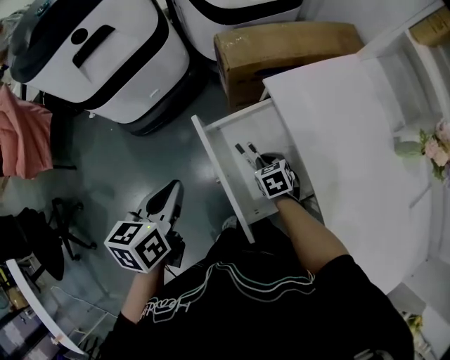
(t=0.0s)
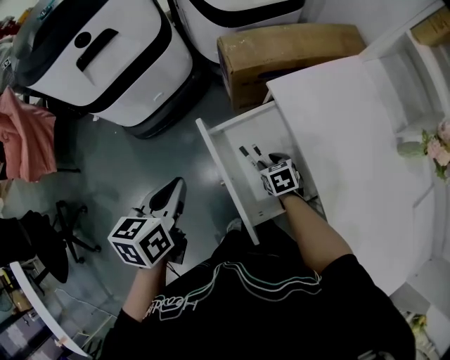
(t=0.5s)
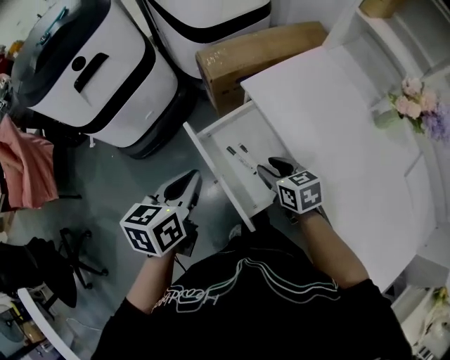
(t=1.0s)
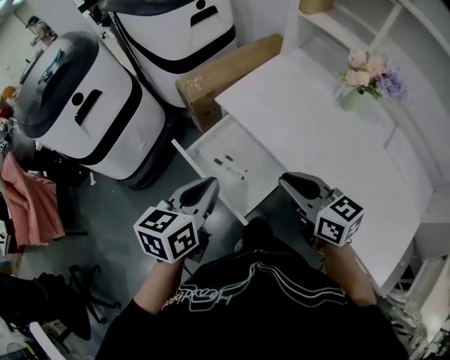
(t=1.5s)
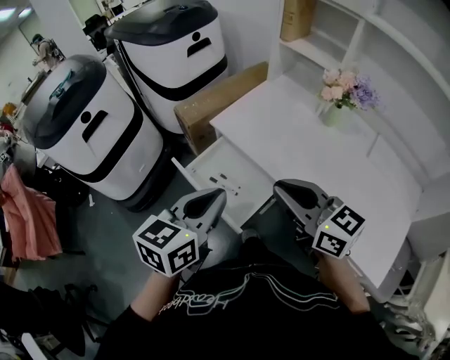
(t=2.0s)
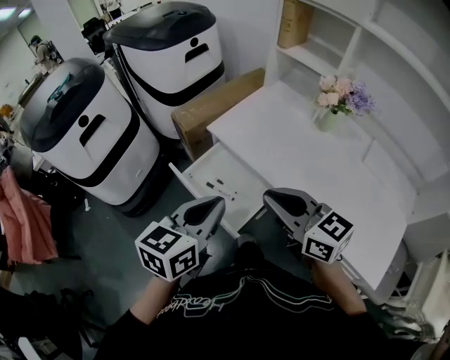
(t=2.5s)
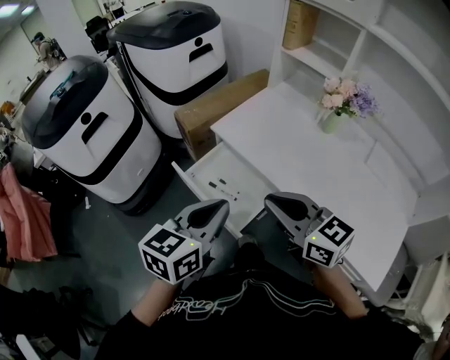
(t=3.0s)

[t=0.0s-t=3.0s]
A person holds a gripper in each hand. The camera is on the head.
t=0.0s to t=1.5s: The right gripper travels upward and backward by about 35 cm, angles its fingers upward, by roughly 50 degrees, and opens and closes again. Meanwhile the left gripper goes some 20 cm to the right, upward and backward, and changes its angle by about 30 degrees.
t=1.5s to t=3.0s: Both grippers move upward and backward, approximately 10 cm.

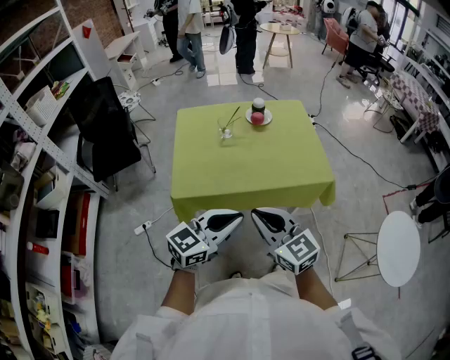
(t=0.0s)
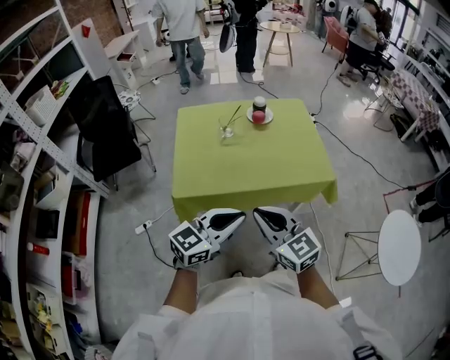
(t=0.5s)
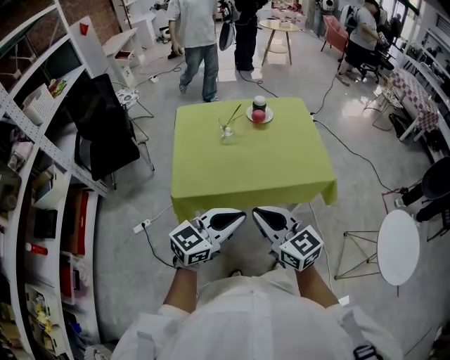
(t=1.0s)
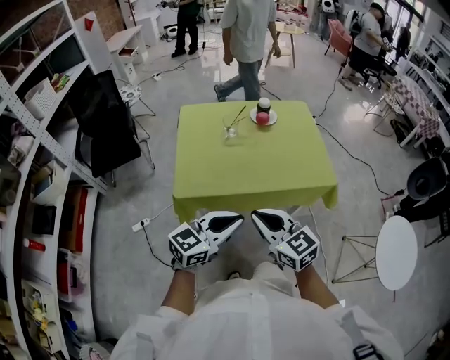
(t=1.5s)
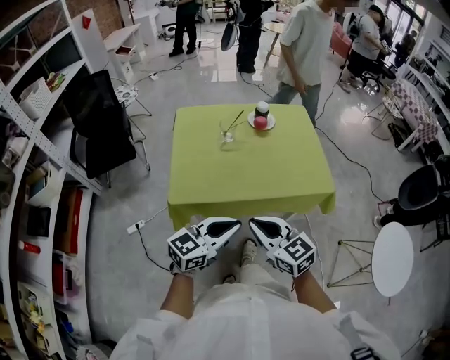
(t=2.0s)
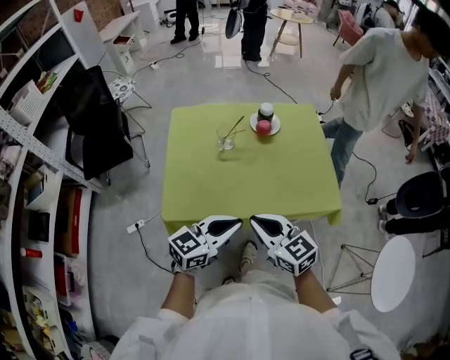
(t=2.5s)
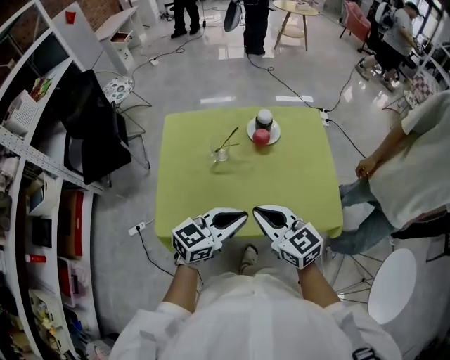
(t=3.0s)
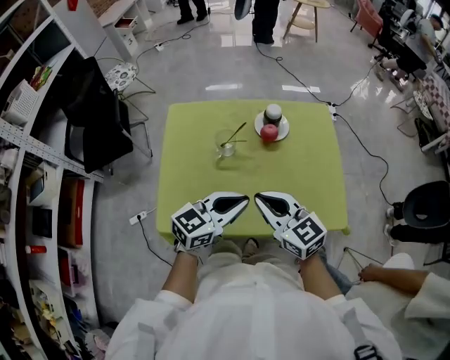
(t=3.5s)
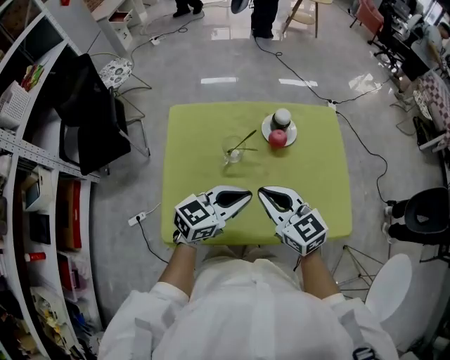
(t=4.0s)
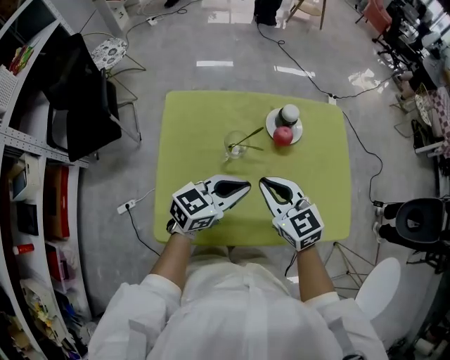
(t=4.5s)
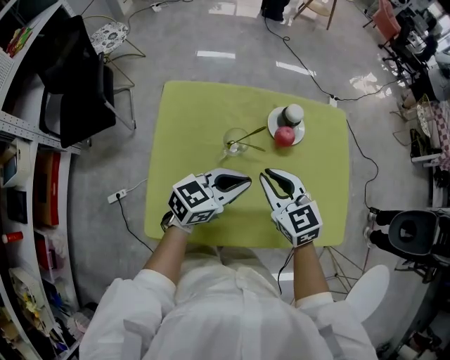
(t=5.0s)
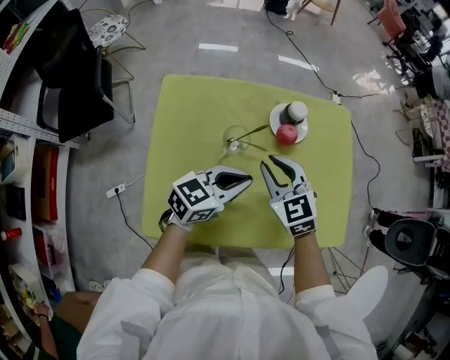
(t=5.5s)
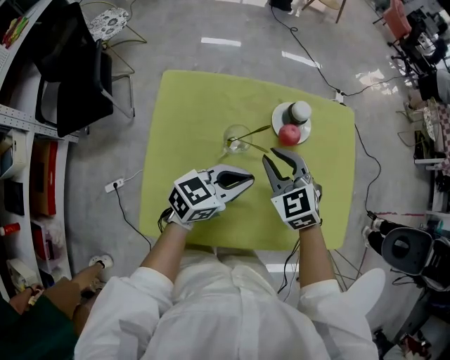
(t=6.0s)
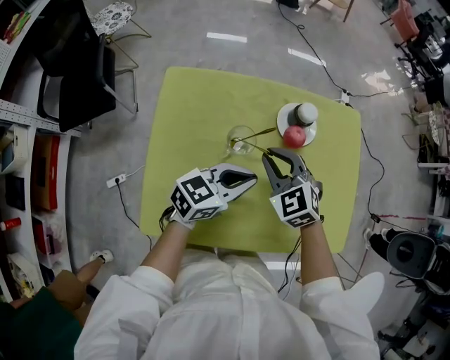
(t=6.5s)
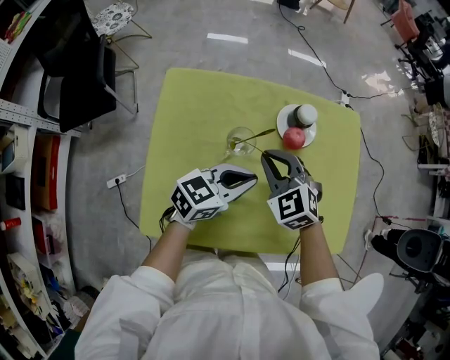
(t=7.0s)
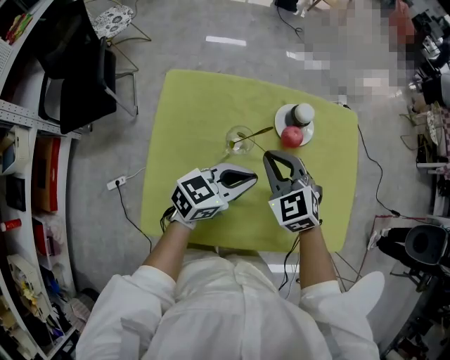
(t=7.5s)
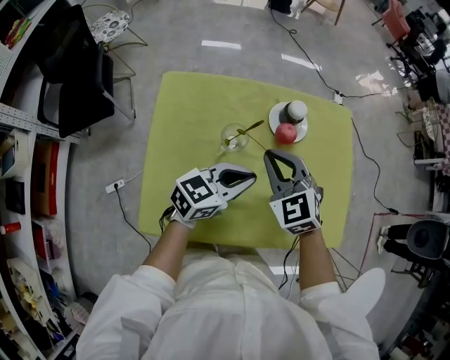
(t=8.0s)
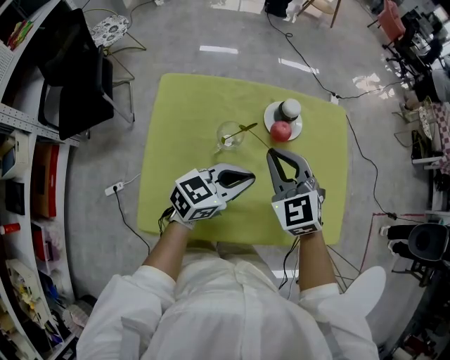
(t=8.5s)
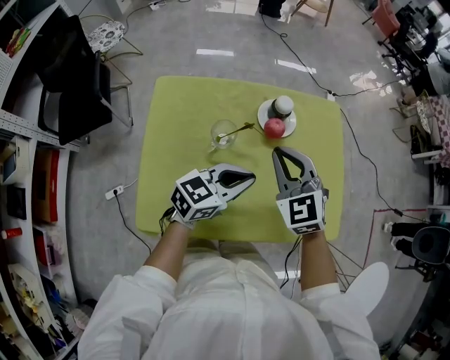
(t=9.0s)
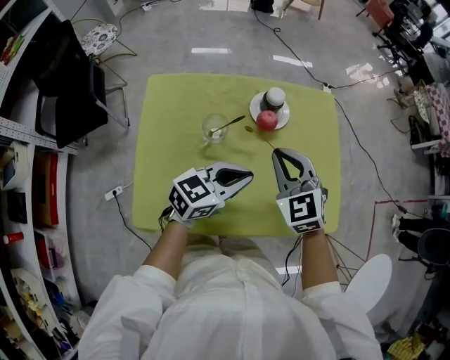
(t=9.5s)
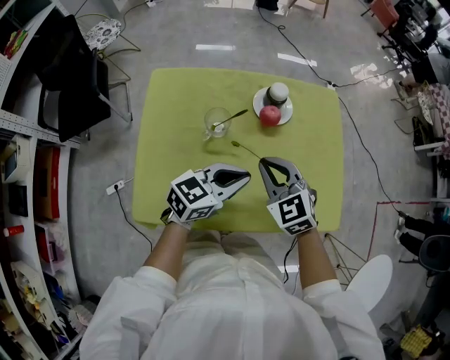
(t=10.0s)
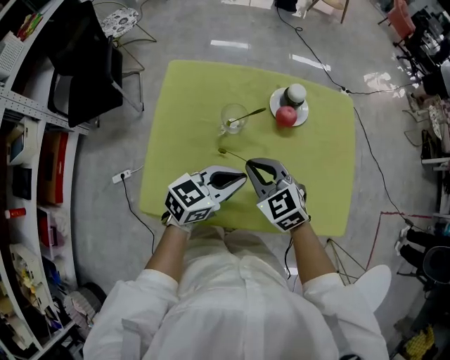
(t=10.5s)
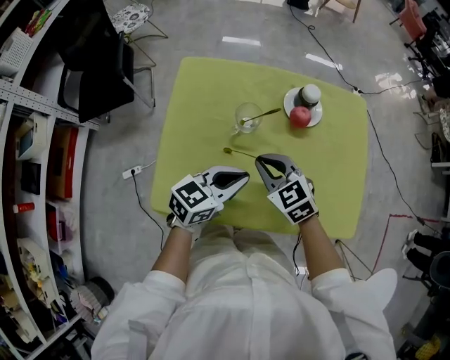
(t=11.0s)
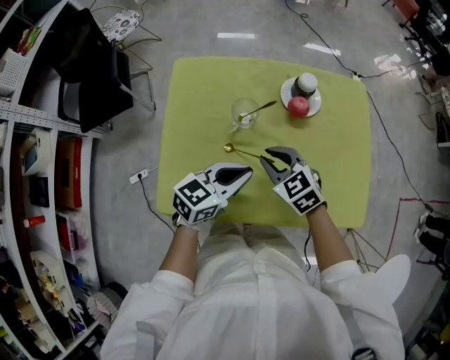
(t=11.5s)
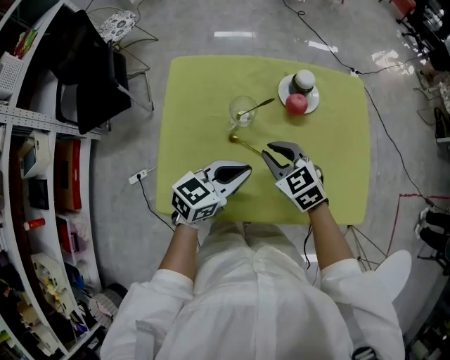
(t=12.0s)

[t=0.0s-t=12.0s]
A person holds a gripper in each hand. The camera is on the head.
t=0.0s to t=2.0s: There are only small adjustments of the grippers.
t=2.0s to t=4.0s: Both grippers travel together forward, some 25 cm.
t=4.0s to t=6.0s: The left gripper goes approximately 5 cm forward. Meanwhile the right gripper travels forward and downward by approximately 15 cm, and swivels some 30 degrees.
t=6.0s to t=8.0s: The grippers move only a little.
t=8.0s to t=10.0s: The right gripper heads to the right, covering about 5 cm. The left gripper ends up roughly 5 cm from where it was.
t=10.0s to t=12.0s: The left gripper travels to the left by some 5 cm. The right gripper moves to the left and downward, roughly 10 cm.

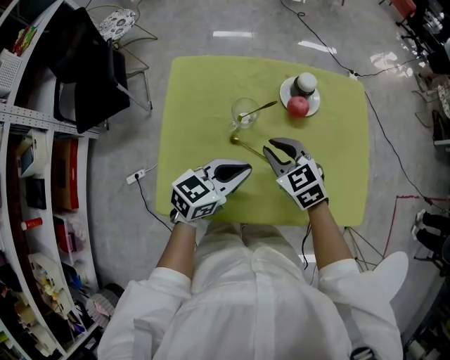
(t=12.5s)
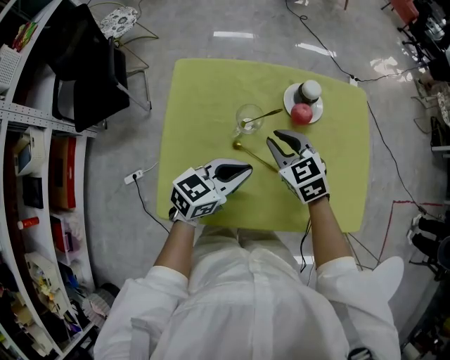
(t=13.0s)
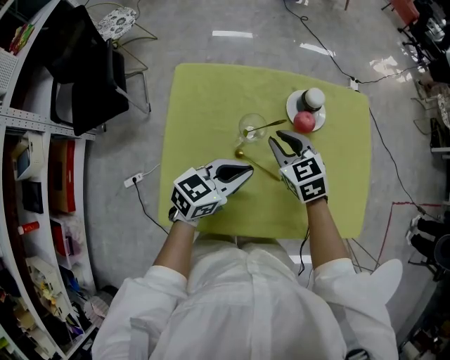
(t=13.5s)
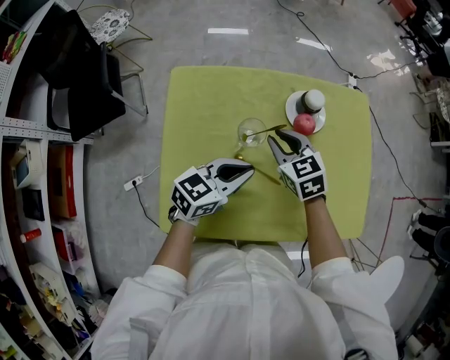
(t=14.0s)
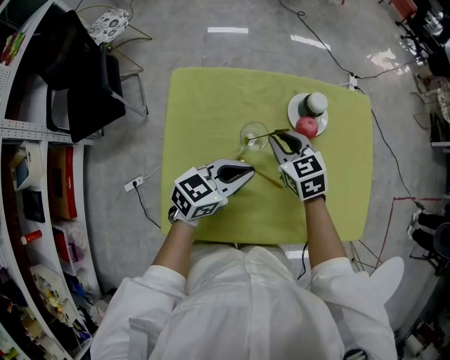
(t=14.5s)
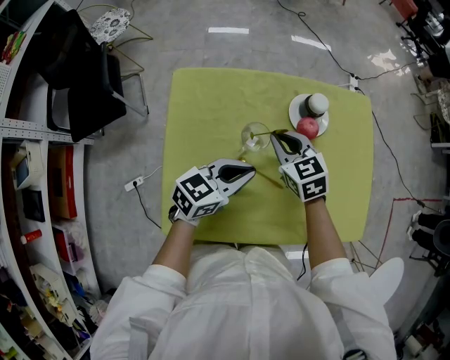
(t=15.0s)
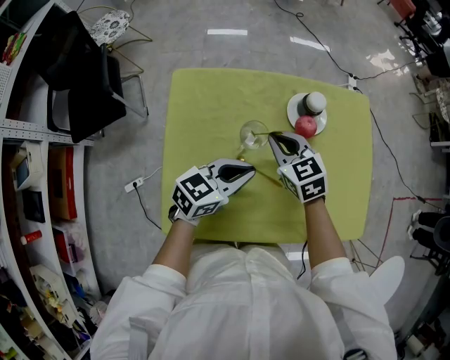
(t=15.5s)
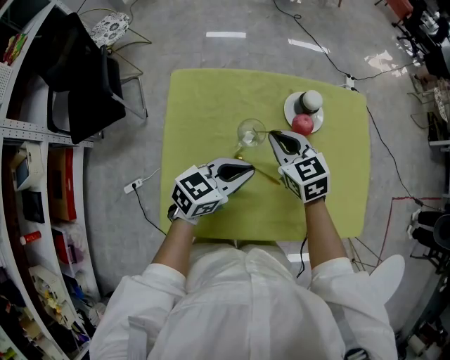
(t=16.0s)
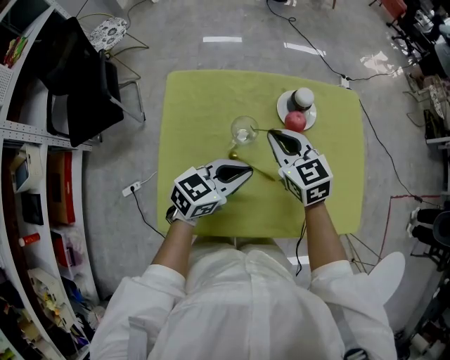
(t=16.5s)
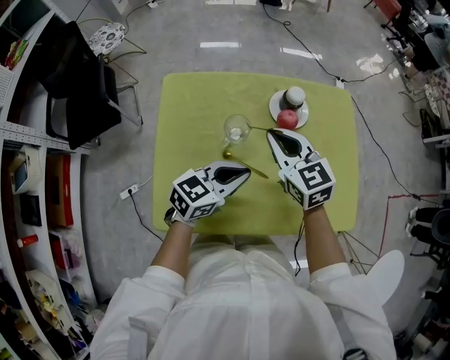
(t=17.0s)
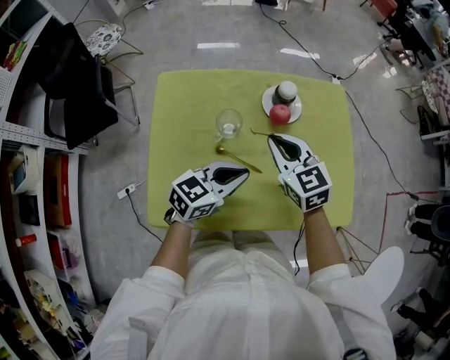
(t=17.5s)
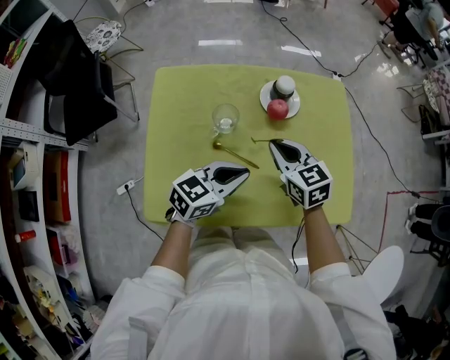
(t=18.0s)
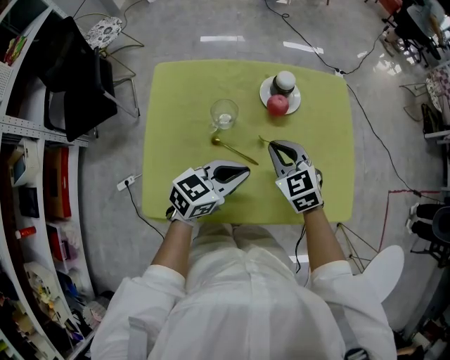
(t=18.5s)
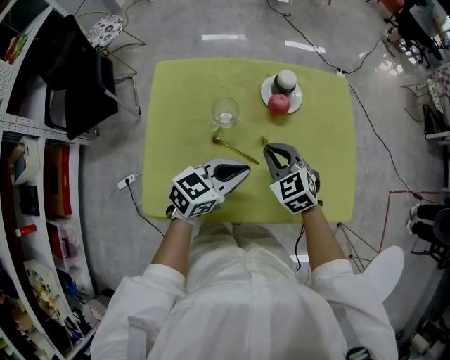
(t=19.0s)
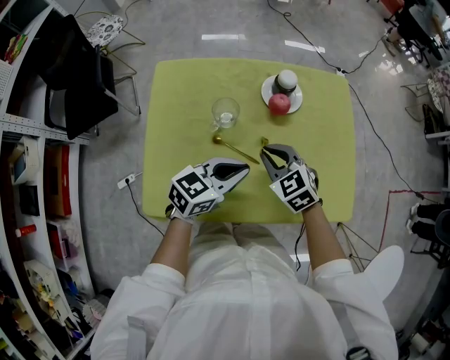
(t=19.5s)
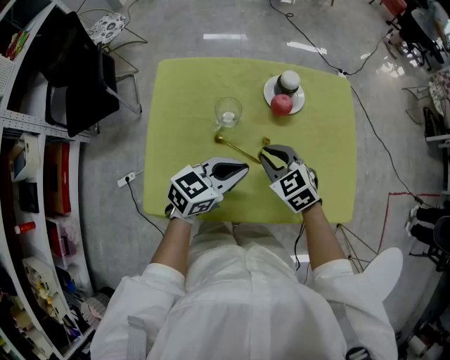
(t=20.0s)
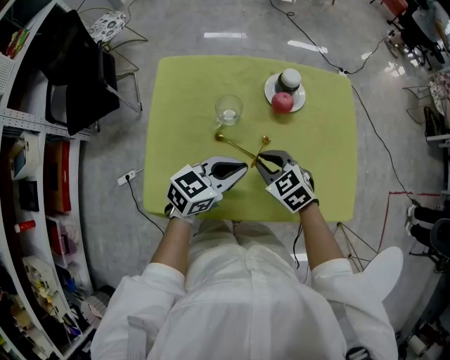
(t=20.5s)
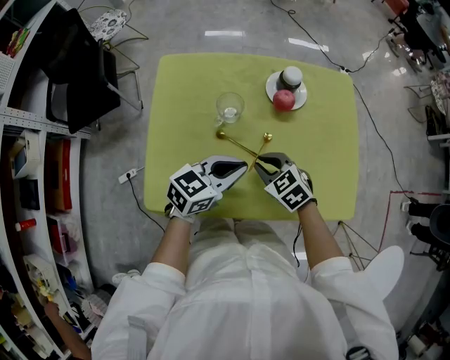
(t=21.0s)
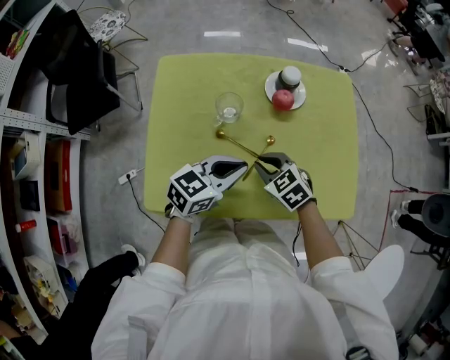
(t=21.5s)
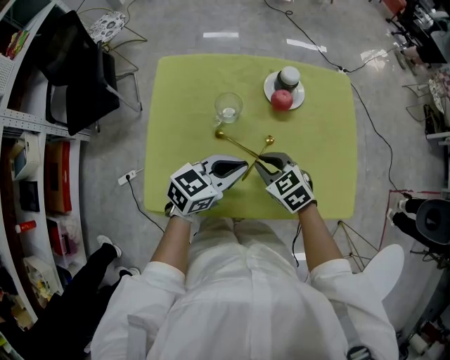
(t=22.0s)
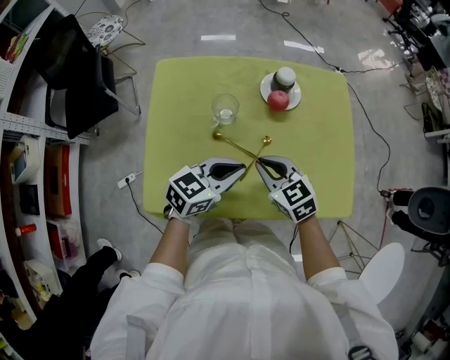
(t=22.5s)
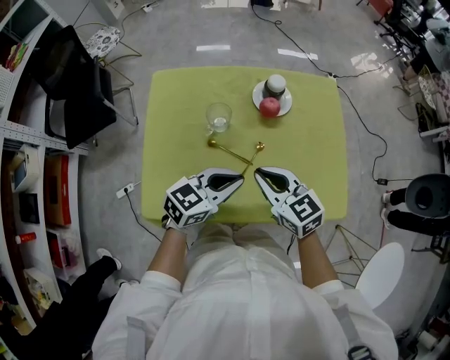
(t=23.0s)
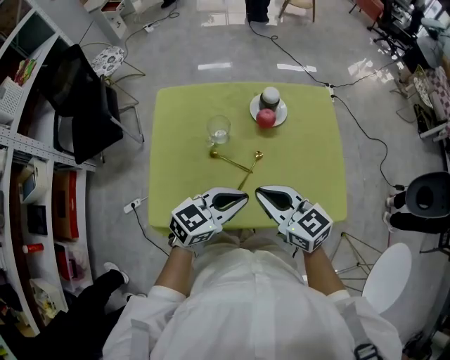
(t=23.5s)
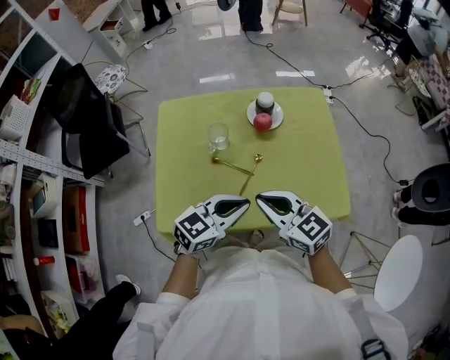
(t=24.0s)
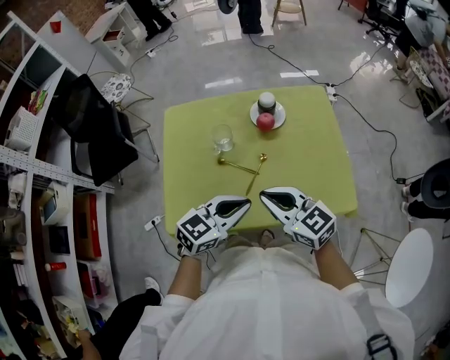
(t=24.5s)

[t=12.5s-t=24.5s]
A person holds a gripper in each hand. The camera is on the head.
t=12.5s to t=14.5s: The right gripper goes some 10 cm forward; the left gripper moves approximately 5 cm.
t=14.5s to t=16.5s: The right gripper is displaced upward by roughly 5 cm.
t=16.5s to t=18.5s: The left gripper moves to the right, approximately 5 cm, while the right gripper shifts roughly 10 cm to the right and downward.
t=18.5s to t=20.5s: The right gripper changes place by roughly 5 cm.
t=20.5s to t=22.5s: The grippers move only a little.
t=22.5s to t=24.5s: The right gripper shifts approximately 15 cm upward and backward, and turns by some 20 degrees, while the left gripper goes approximately 5 cm backward.
